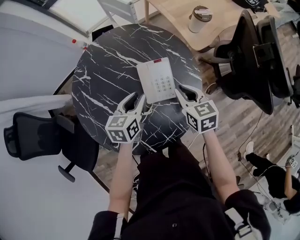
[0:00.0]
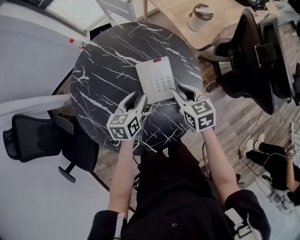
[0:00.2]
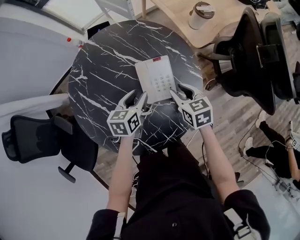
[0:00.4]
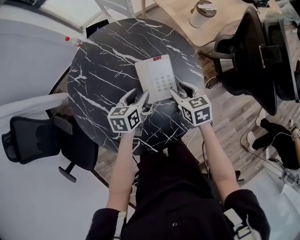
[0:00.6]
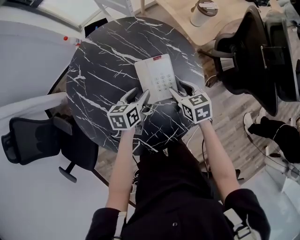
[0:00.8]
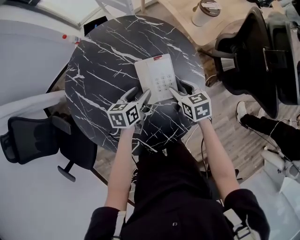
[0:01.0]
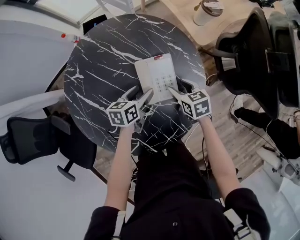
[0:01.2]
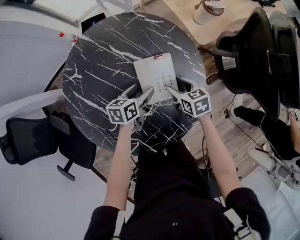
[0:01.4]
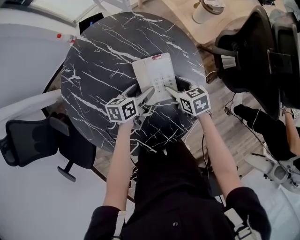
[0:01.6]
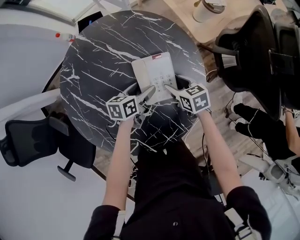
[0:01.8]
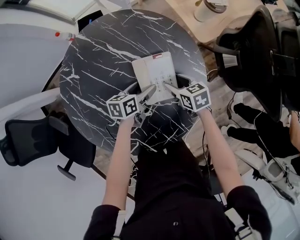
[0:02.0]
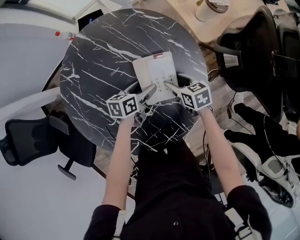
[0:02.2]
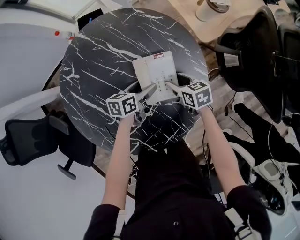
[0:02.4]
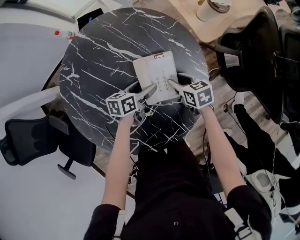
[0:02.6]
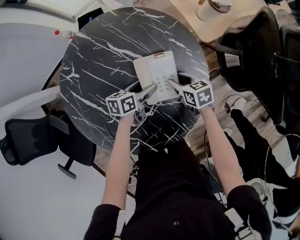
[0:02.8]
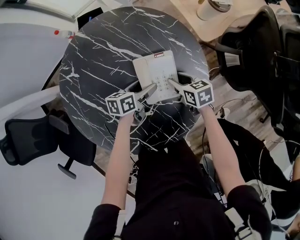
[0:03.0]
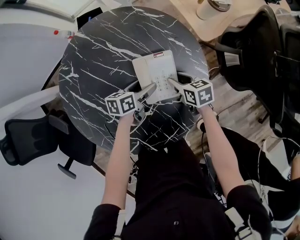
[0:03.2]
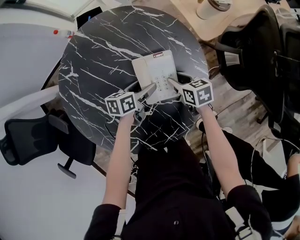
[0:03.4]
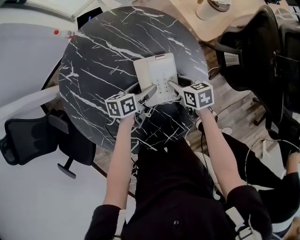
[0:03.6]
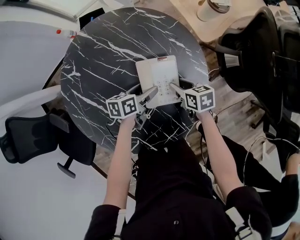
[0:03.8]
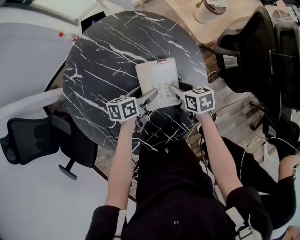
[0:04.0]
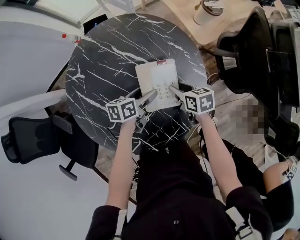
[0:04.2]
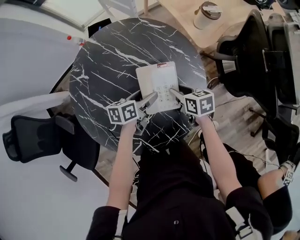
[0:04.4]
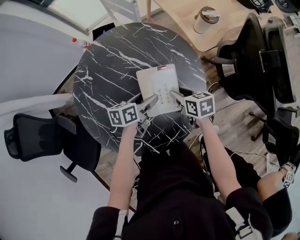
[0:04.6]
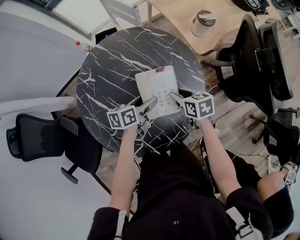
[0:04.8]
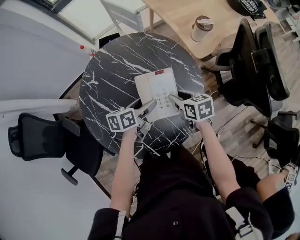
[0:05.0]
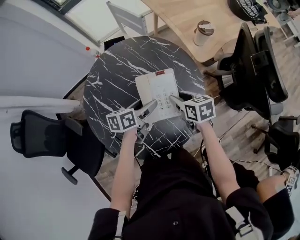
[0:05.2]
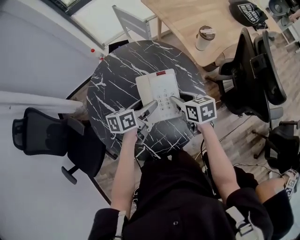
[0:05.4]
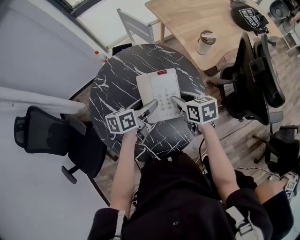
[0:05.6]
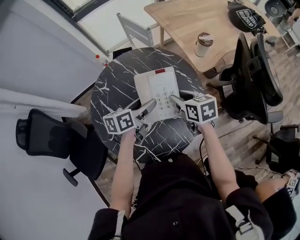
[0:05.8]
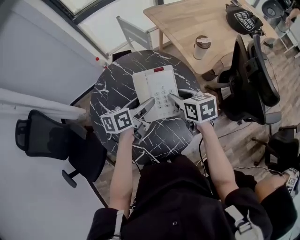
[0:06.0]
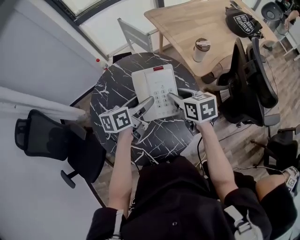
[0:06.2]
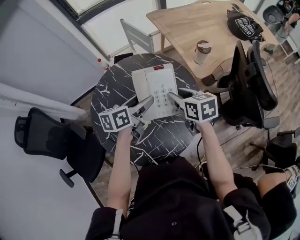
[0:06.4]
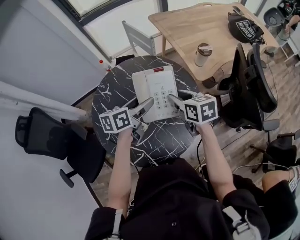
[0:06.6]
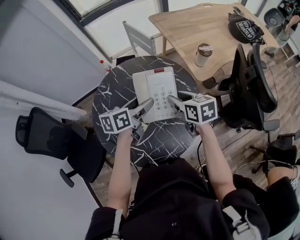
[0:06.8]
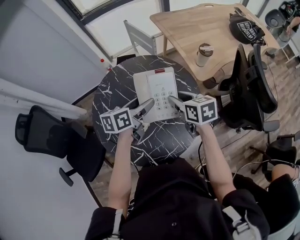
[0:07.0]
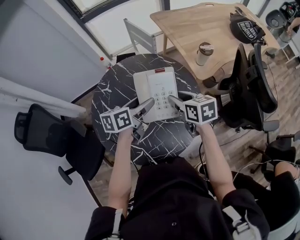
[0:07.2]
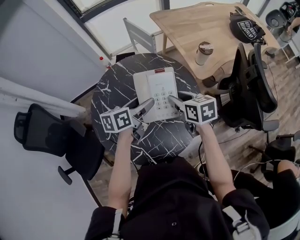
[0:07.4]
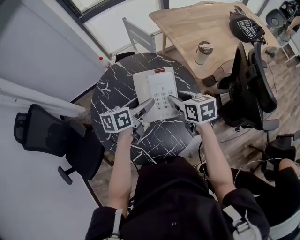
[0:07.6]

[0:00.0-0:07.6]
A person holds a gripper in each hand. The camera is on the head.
0:00.0 to 0:01.6: Both grippers travel together downward, roughly 15 cm. The left gripper rotates about 20 degrees, and opens; the right gripper opens.
0:01.6 to 0:03.0: The grippers move only a little.
0:03.0 to 0:04.6: The two grippers go about 10 cm upward.
0:04.6 to 0:06.0: The grippers both shift upward by some 15 cm.
0:06.0 to 0:07.6: There are only small adjustments of the grippers.

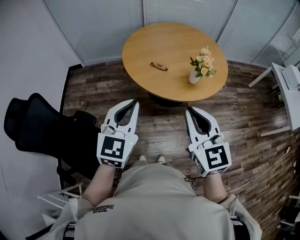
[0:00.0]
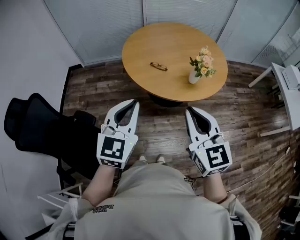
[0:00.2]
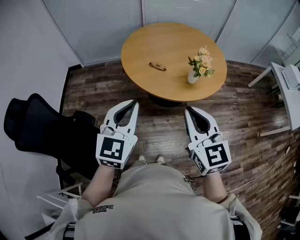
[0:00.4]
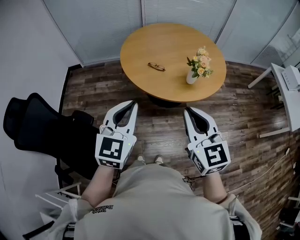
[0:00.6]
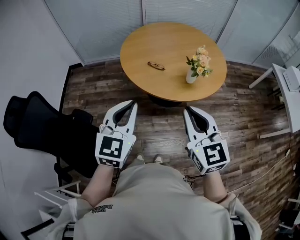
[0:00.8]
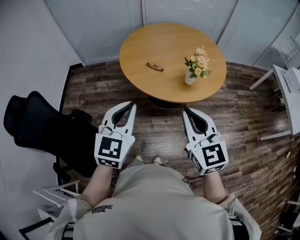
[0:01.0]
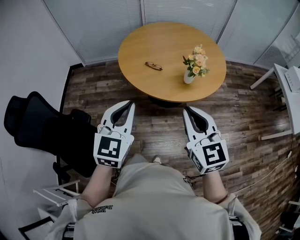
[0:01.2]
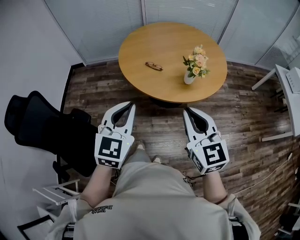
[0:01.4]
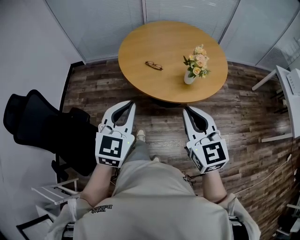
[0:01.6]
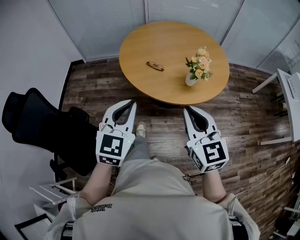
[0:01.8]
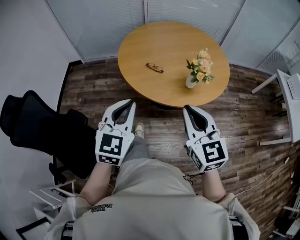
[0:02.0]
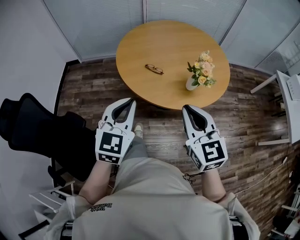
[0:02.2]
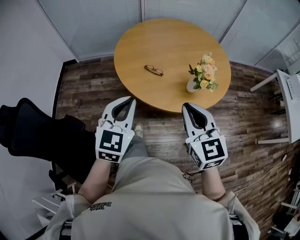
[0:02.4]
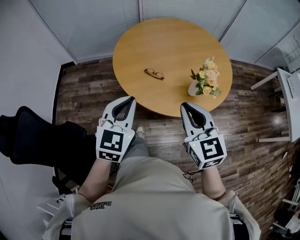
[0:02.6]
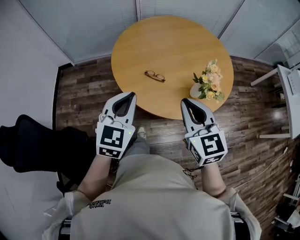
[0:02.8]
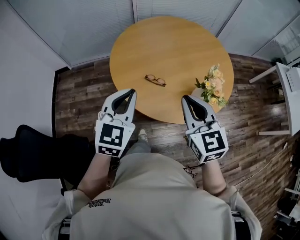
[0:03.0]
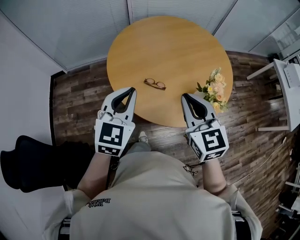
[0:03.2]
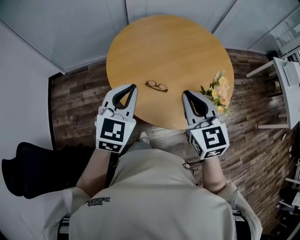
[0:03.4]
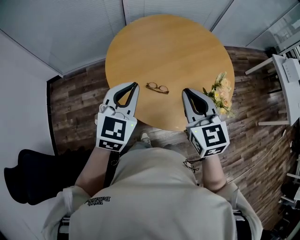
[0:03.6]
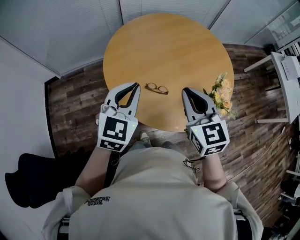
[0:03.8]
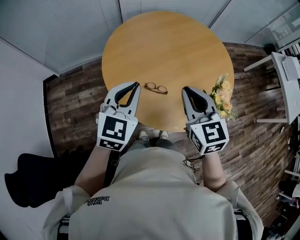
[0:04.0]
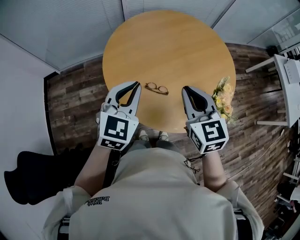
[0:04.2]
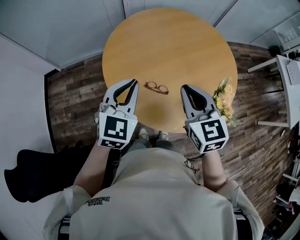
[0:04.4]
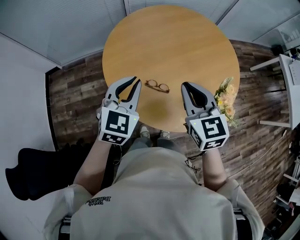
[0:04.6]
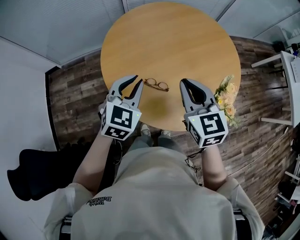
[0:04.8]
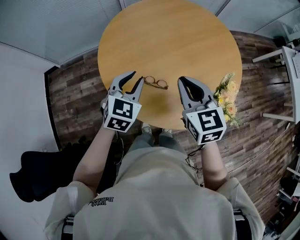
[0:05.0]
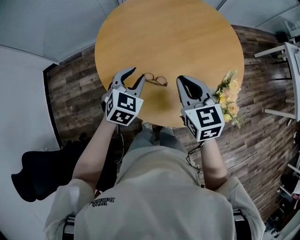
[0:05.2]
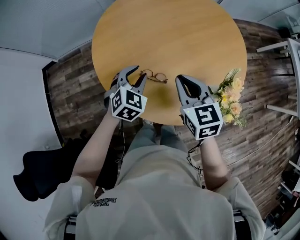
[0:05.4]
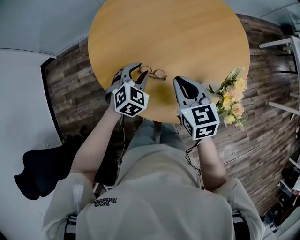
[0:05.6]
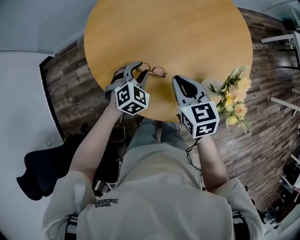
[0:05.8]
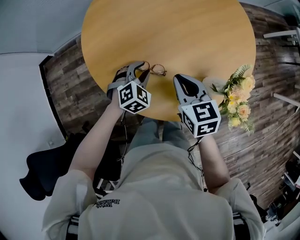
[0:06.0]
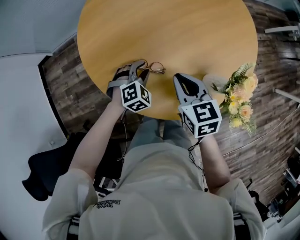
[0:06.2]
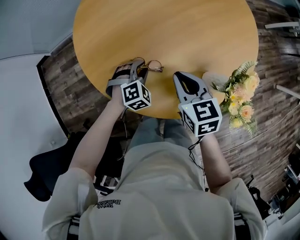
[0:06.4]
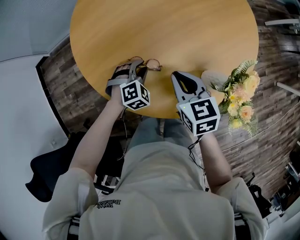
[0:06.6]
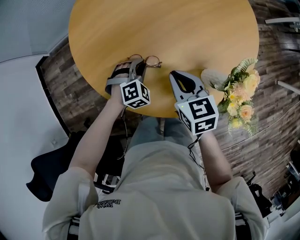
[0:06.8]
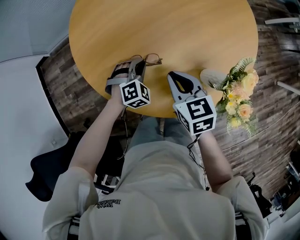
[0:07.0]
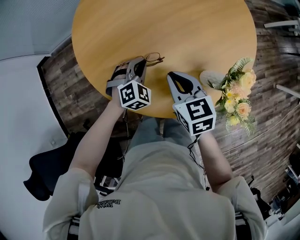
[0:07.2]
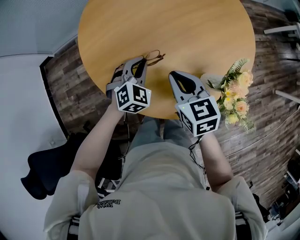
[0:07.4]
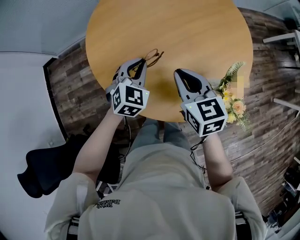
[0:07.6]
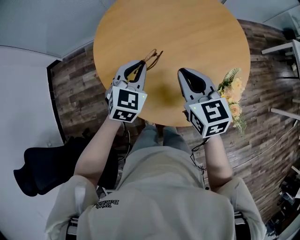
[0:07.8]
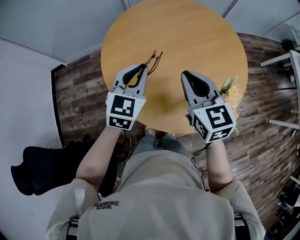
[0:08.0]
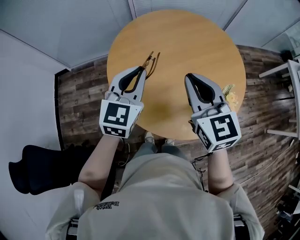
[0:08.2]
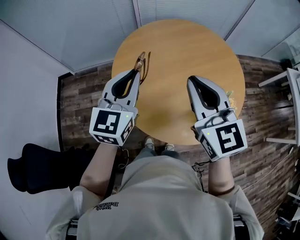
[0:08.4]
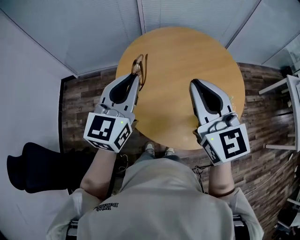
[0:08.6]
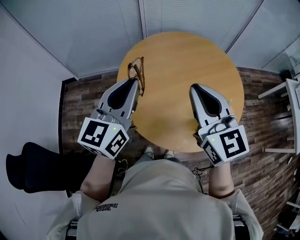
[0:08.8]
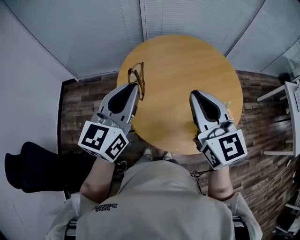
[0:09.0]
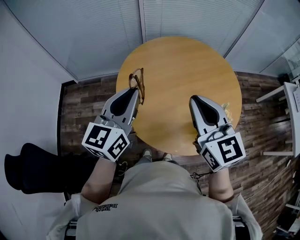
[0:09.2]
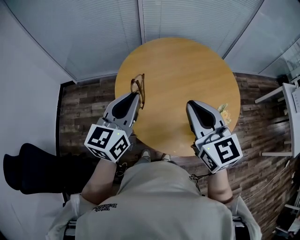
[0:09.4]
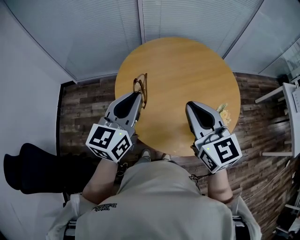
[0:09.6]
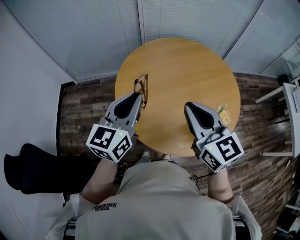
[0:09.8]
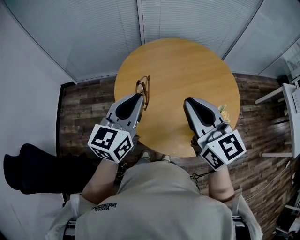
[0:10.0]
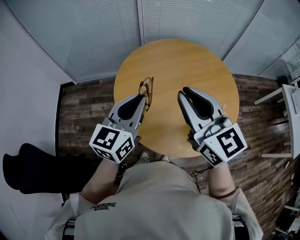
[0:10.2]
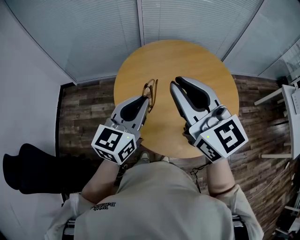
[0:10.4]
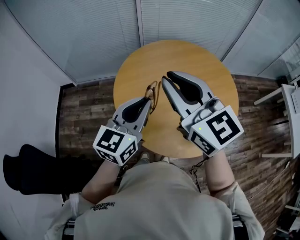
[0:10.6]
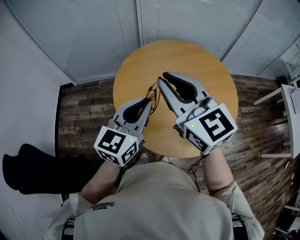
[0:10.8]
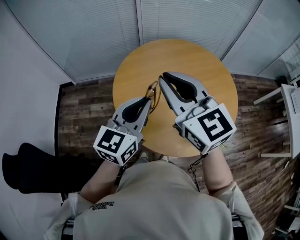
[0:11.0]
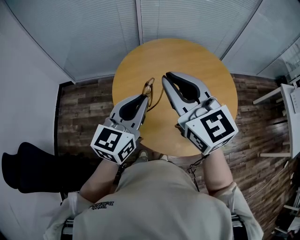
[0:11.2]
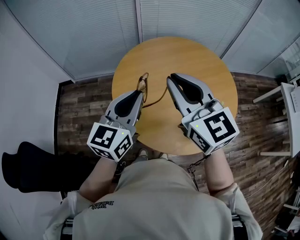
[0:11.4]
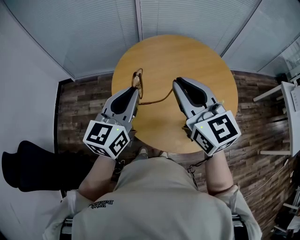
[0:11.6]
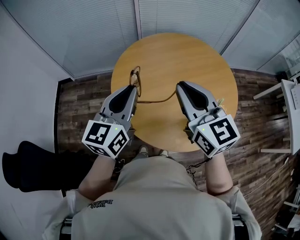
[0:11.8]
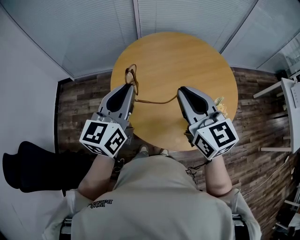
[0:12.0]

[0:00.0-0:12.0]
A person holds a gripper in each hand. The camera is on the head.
0:00.0 to 0:01.6: Both grippers move to the right, some 5 cm.
0:01.6 to 0:03.0: The grippers both shift forward by some 25 cm.
0:03.0 to 0:04.4: Both grippers travel together forward, approximately 15 cm.
0:04.4 to 0:06.0: The right gripper moves downward, about 20 cm, and swivels approximately 20 degrees; the left gripper shifts approximately 30 cm downward, tilts its fingers about 30 degrees downward, and opens its fingers.
0:06.0 to 0:07.6: The left gripper goes approximately 10 cm upward, turns by approximately 20 degrees, and closes its fingers. The right gripper goes roughly 5 cm upward.
0:07.6 to 0:09.0: Both grippers travel together upward, approximately 30 cm. The left gripper angles its fingers upward, by about 40 degrees; the right gripper rotates roughly 30 degrees.
0:09.0 to 0:10.4: The right gripper is displaced upward by about 5 cm. The left gripper shifts by some 5 cm.
0:10.4 to 0:12.0: The right gripper goes about 10 cm downward.

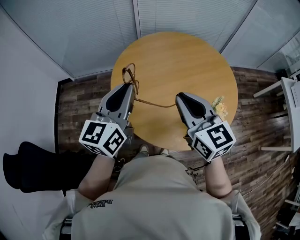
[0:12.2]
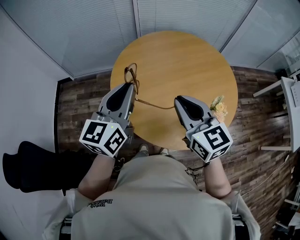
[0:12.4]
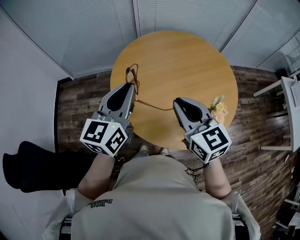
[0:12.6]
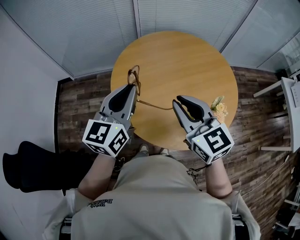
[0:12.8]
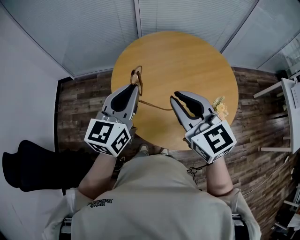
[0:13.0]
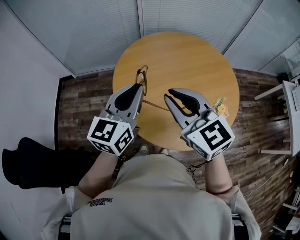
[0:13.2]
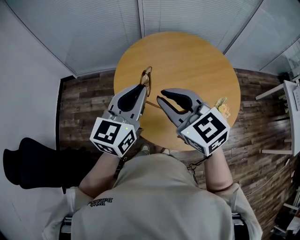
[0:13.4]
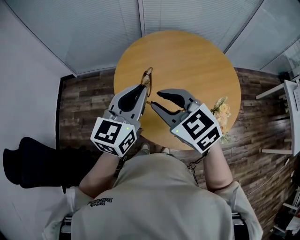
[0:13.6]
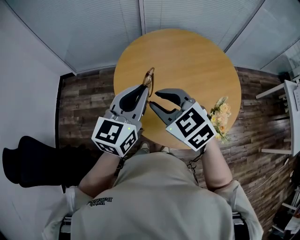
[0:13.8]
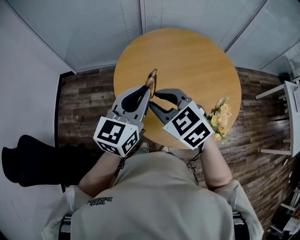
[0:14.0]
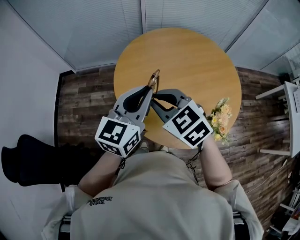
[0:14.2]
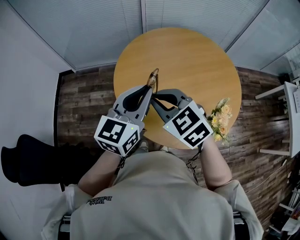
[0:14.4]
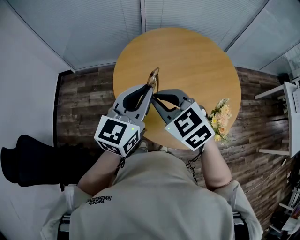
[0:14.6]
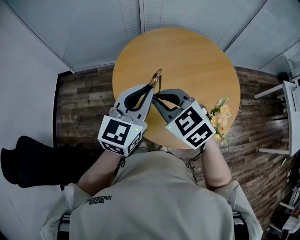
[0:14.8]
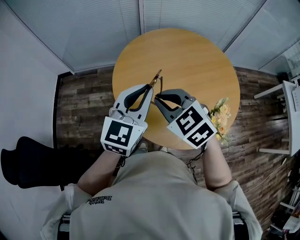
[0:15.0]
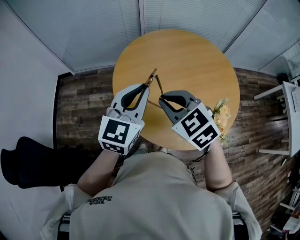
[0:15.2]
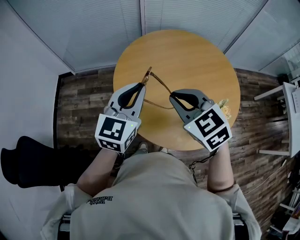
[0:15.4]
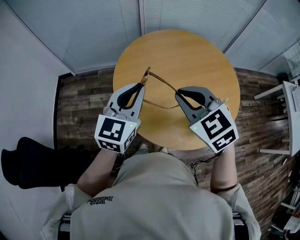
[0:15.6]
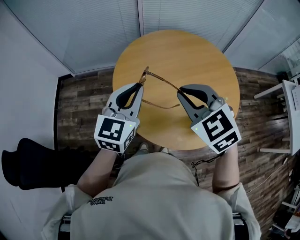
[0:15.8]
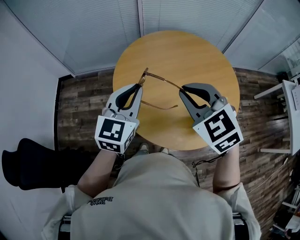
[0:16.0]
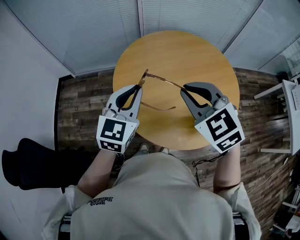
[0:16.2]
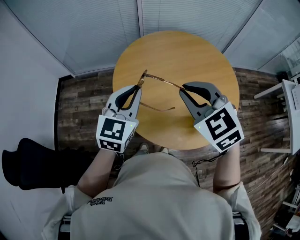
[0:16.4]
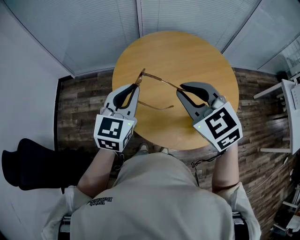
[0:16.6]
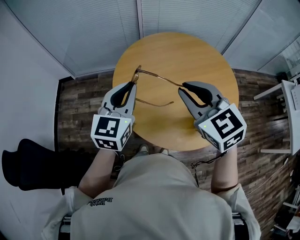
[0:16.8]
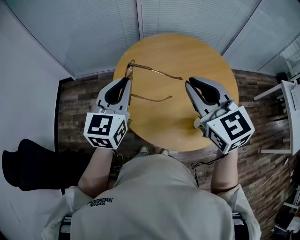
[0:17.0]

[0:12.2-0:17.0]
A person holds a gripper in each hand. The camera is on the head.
0:12.2 to 0:13.8: The right gripper shifts some 10 cm to the left, and changes its angle by about 30 degrees.
0:13.8 to 0:15.4: The right gripper travels to the right by some 5 cm.
0:15.4 to 0:17.0: The right gripper travels upward and to the right by approximately 10 cm, and swivels some 20 degrees.
